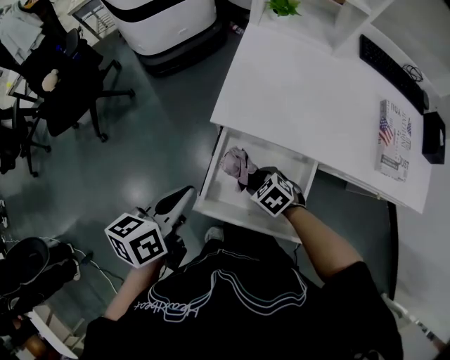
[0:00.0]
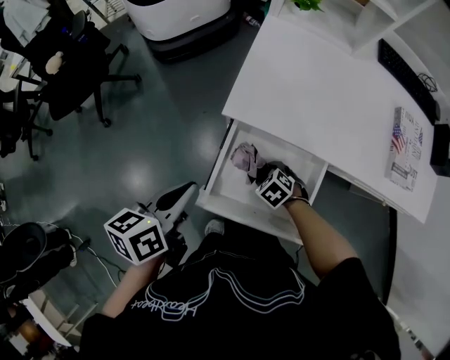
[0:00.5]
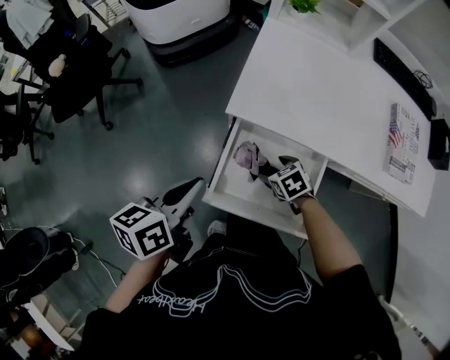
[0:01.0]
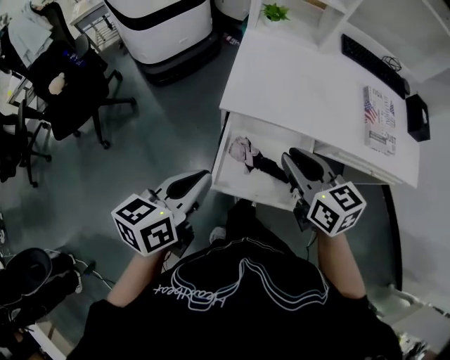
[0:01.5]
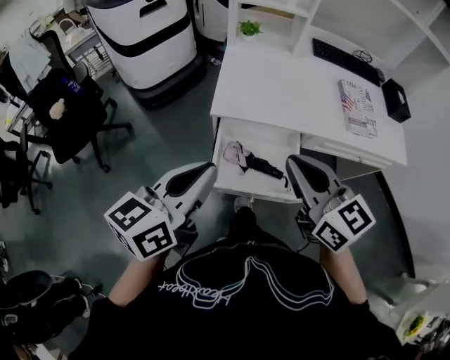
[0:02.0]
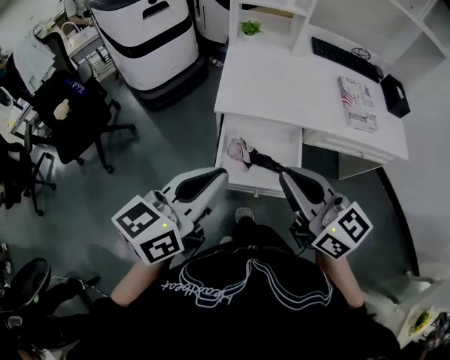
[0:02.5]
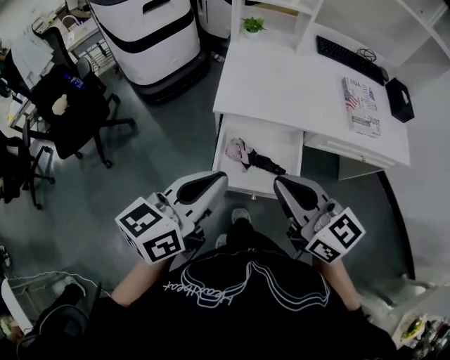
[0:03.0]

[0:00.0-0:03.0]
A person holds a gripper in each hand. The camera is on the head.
0:00.0 to 0:01.5: The left gripper is displaced upward by some 5 cm. Meanwhile the right gripper travels upward by roughly 30 cm, tips its fingers upward by some 40 degrees, and closes its fingers.
0:01.5 to 0:03.0: The left gripper shifts about 10 cm upward and backward. The right gripper shifts roughly 15 cm backward and upward.

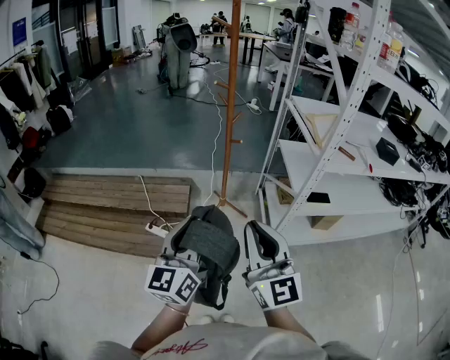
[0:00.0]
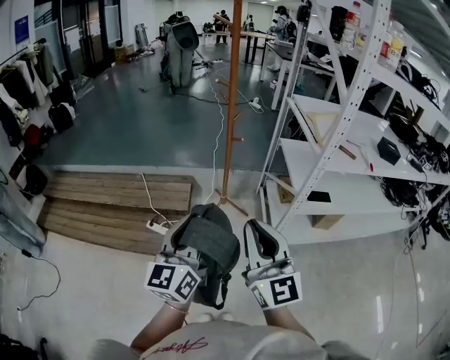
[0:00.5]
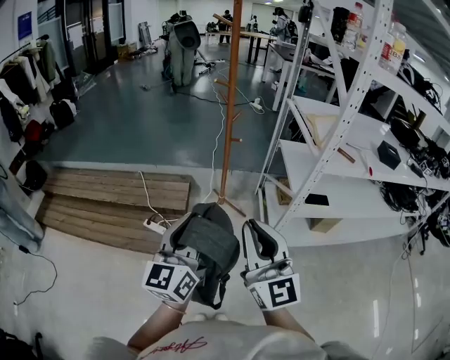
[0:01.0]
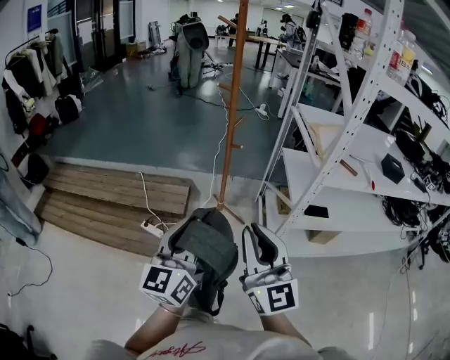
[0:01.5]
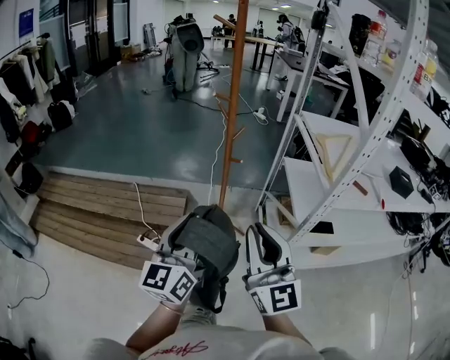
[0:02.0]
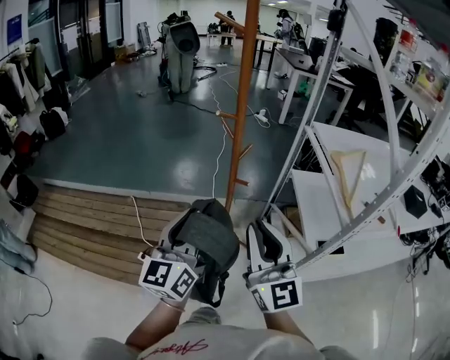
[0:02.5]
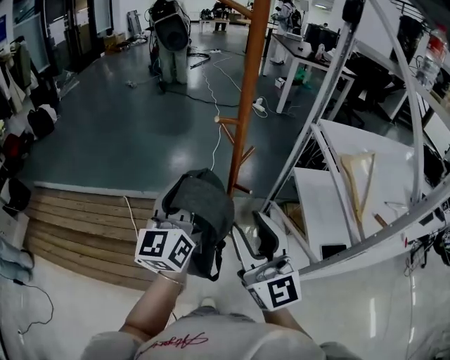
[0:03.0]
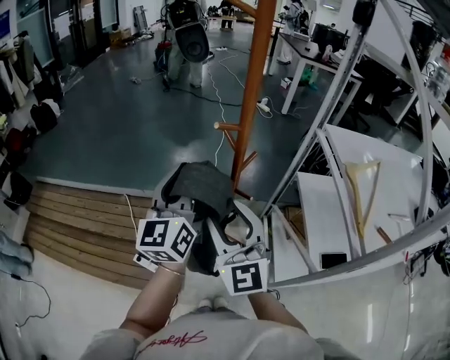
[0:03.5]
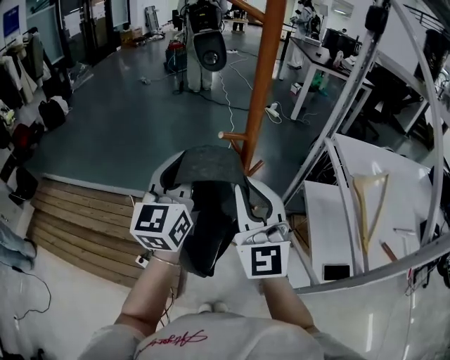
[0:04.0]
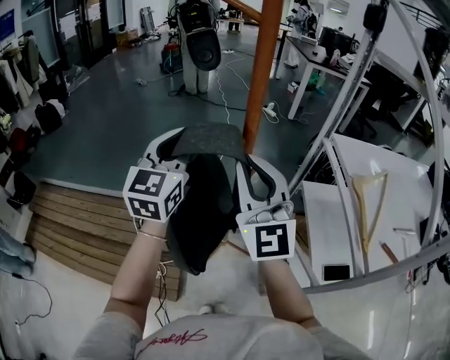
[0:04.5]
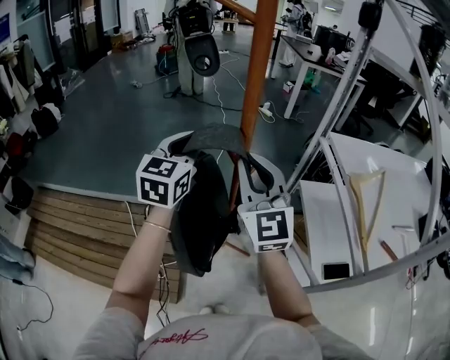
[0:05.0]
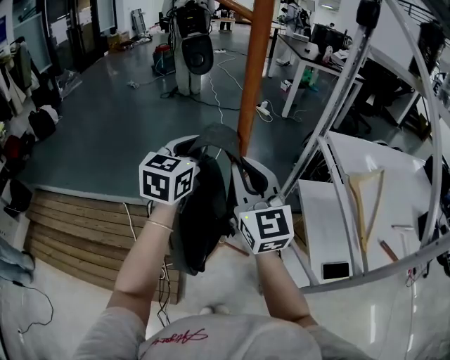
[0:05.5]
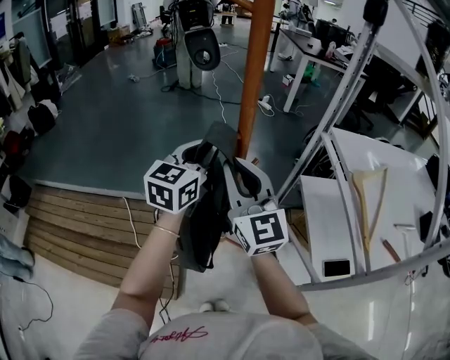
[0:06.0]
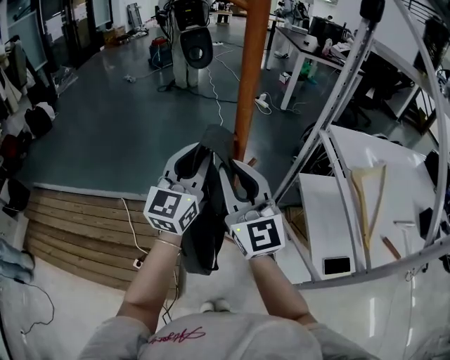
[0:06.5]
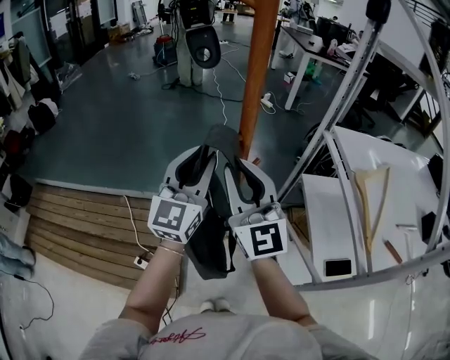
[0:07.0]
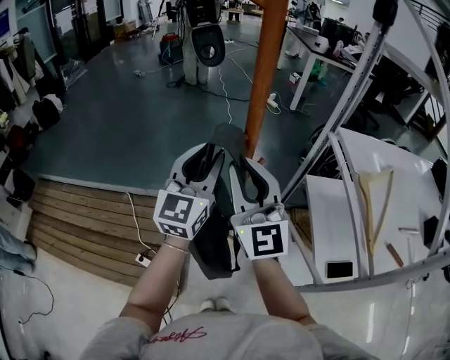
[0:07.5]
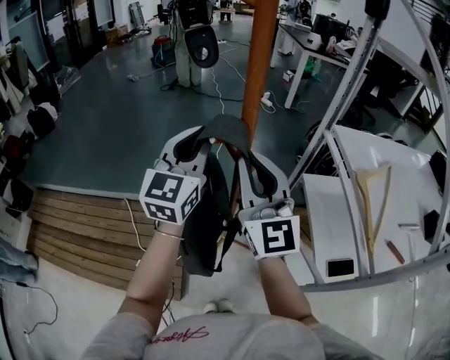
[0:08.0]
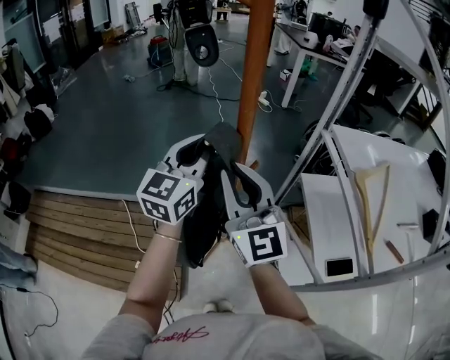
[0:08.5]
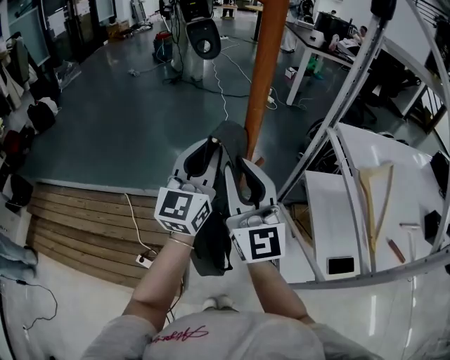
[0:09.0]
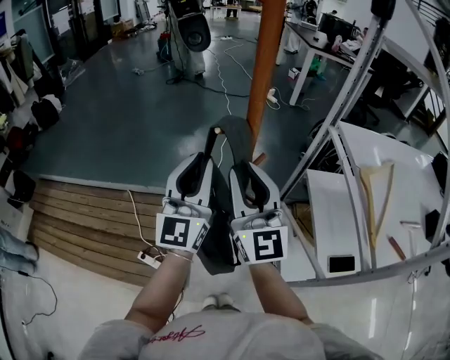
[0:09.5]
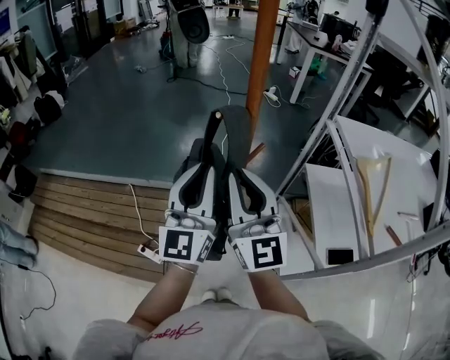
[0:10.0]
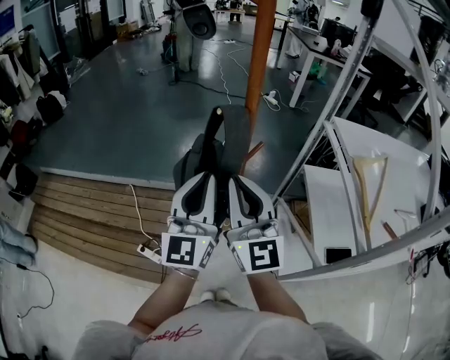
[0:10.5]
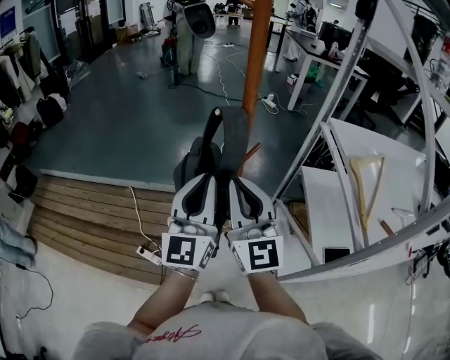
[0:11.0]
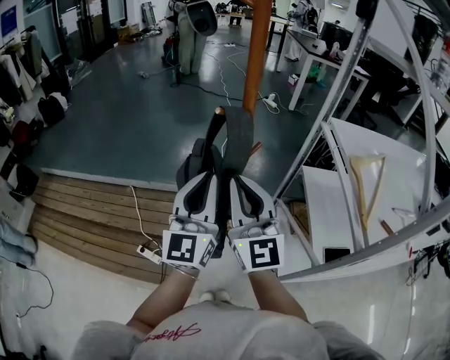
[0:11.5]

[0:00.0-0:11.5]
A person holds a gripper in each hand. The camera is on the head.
0:00.0 to 0:02.0: Both grippers travel together forward, roughly 10 cm.
0:02.0 to 0:04.0: Both grippers move forward, about 35 cm. The right gripper opens, then closes again.
0:04.0 to 0:06.0: The right gripper moves forward, about 5 cm. The left gripper goes roughly 10 cm forward and to the right, and changes its angle by about 20 degrees.
0:06.0 to 0:07.5: The left gripper opens up.
0:07.5 to 0:09.5: The grippers make only small movements.
0:09.5 to 0:11.5: Both grippers travel together backward, about 10 cm.

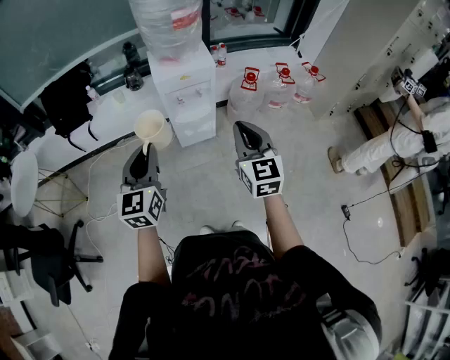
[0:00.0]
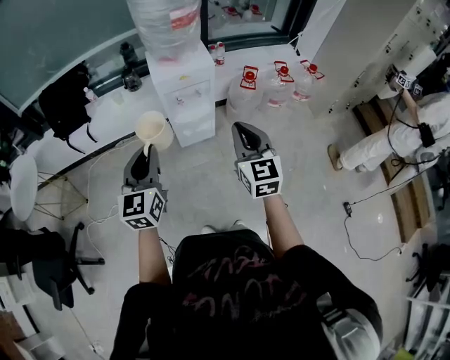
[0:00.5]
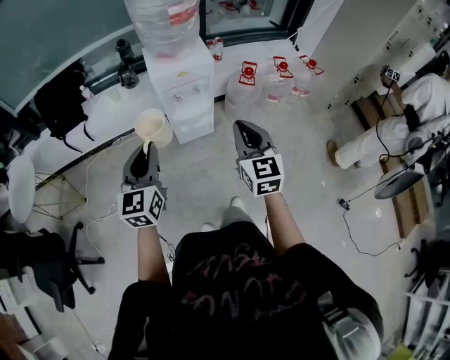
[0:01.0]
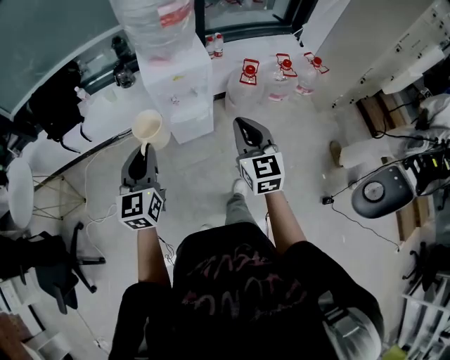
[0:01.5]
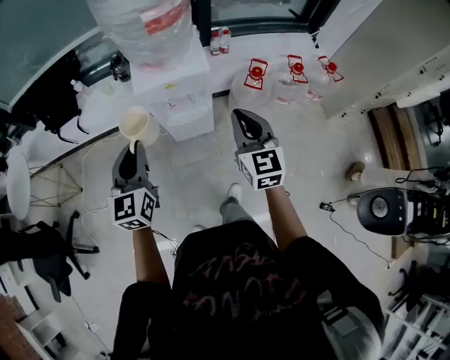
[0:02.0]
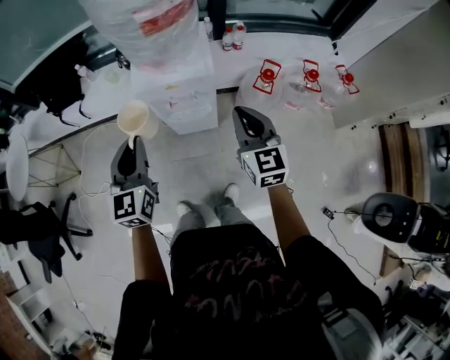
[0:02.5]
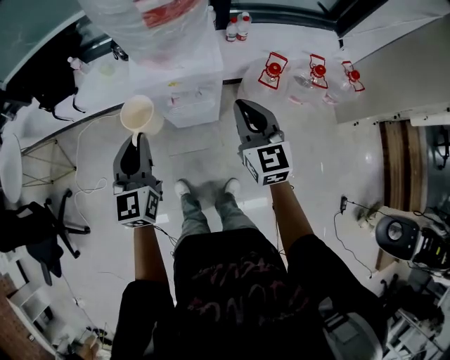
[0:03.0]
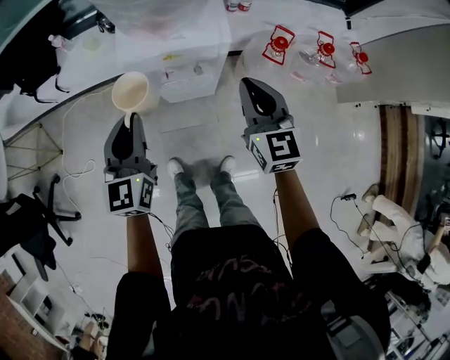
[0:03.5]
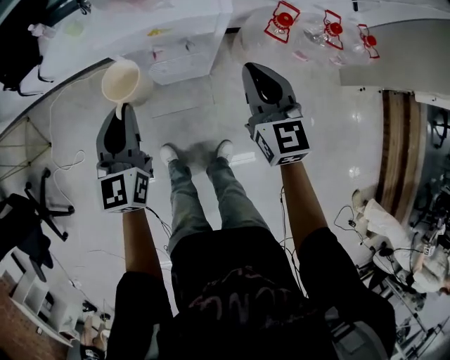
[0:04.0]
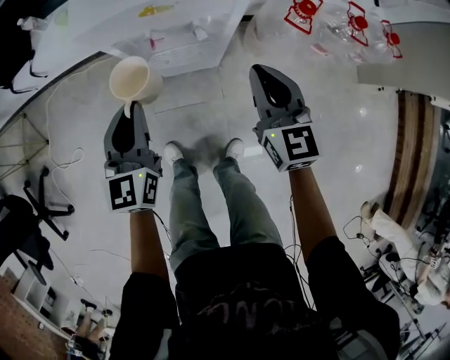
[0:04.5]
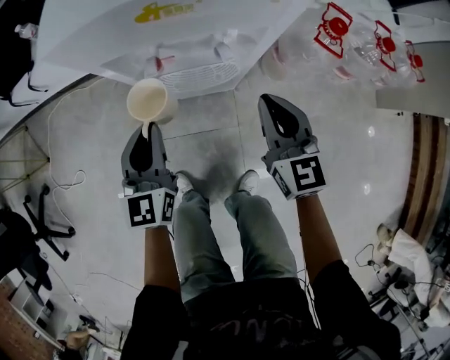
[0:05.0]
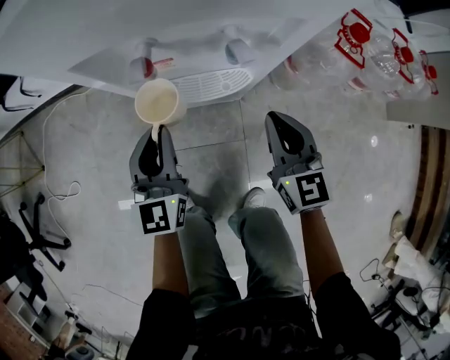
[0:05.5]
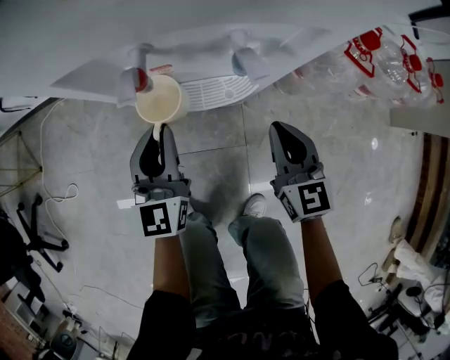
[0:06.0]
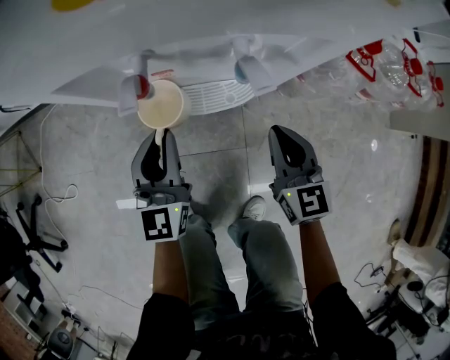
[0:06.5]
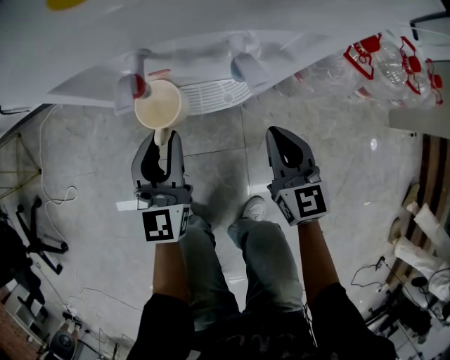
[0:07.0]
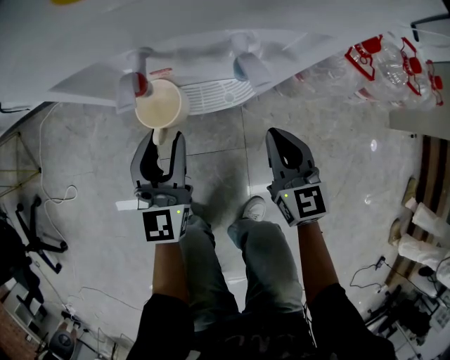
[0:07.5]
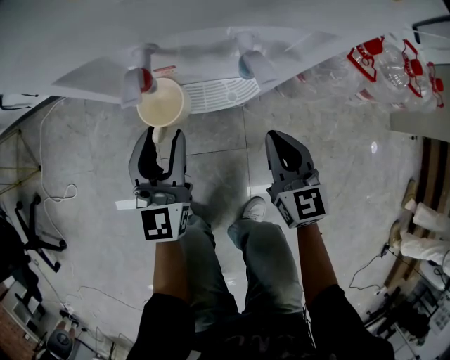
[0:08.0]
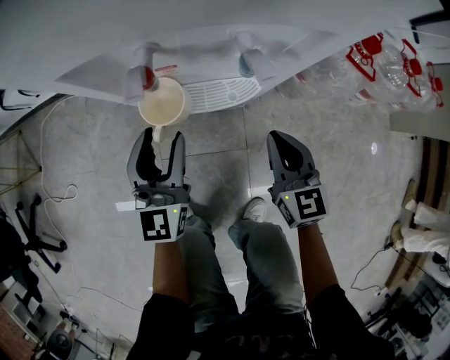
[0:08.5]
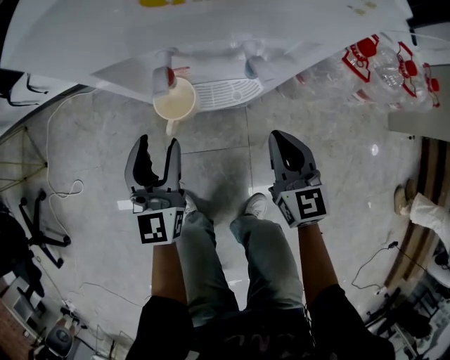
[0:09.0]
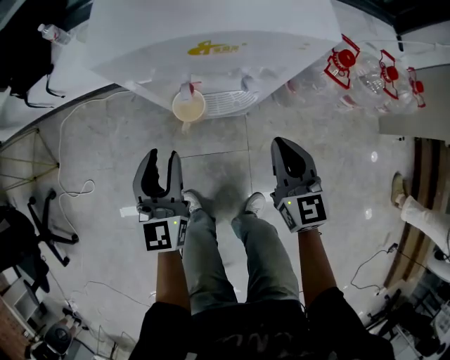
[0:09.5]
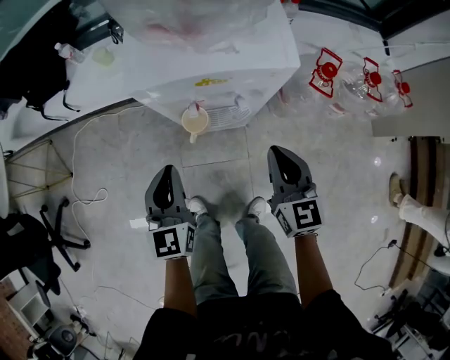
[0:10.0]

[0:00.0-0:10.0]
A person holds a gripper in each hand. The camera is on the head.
0:00.0 to 0:02.0: The grippers both shift forward by approximately 20 cm.
0:02.0 to 0:04.0: Both grippers move downward and forward, approximately 20 cm.
0:04.0 to 0:06.0: The grippers both shift downward by some 35 cm.
0:06.0 to 0:08.0: The left gripper opens its fingers.
0:08.0 to 0:10.0: The two grippers go some 20 cm upward. The left gripper closes its fingers.

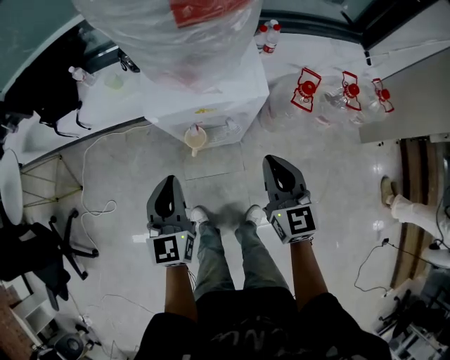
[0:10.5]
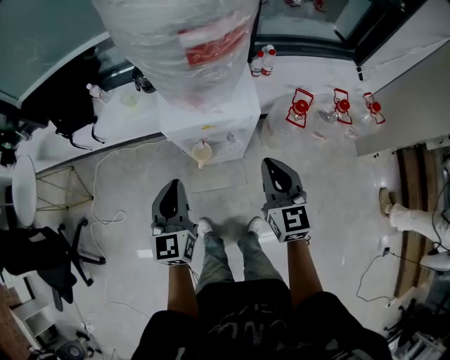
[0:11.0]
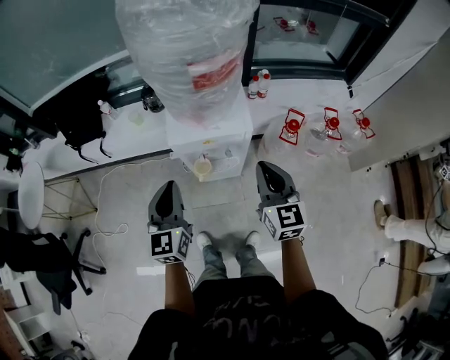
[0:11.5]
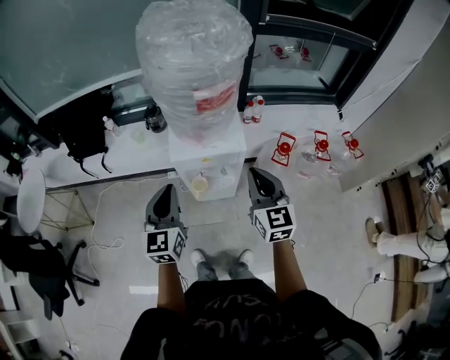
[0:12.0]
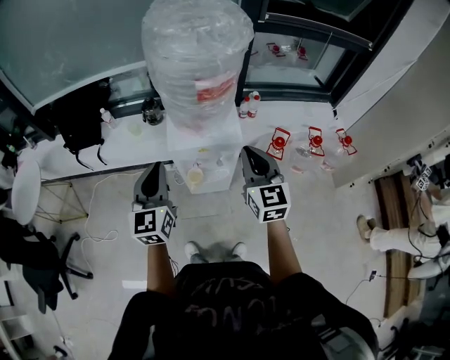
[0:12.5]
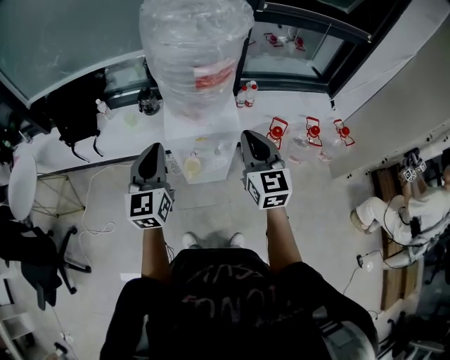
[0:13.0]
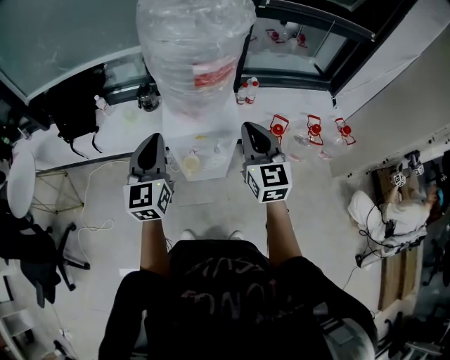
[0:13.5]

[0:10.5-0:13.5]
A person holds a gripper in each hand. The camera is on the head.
0:10.5 to 0:12.0: The grippers both shift upward by about 20 cm.
0:12.0 to 0:13.5: The right gripper moves upward, approximately 5 cm, while the left gripper shifts roughly 5 cm upward and forward.
